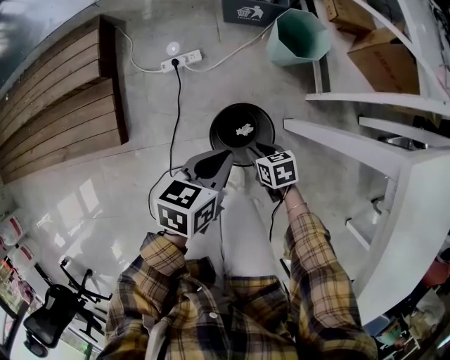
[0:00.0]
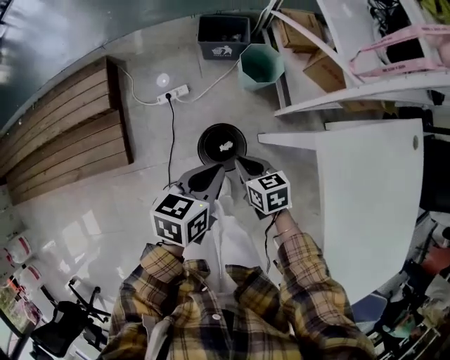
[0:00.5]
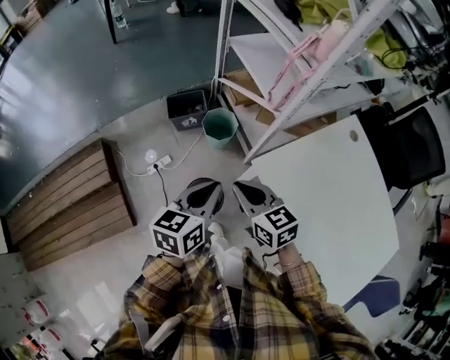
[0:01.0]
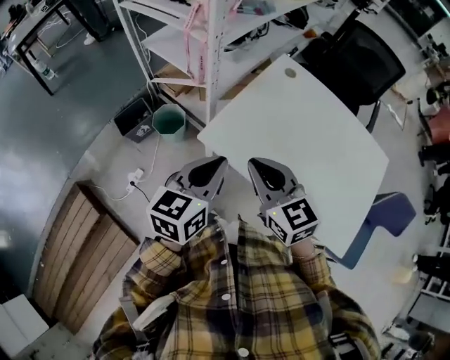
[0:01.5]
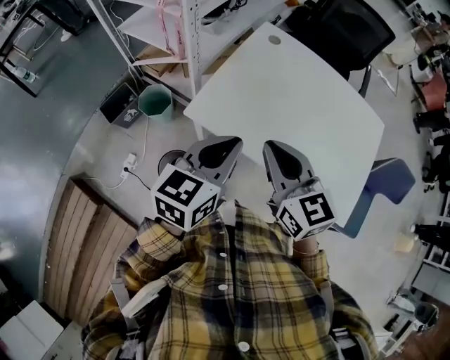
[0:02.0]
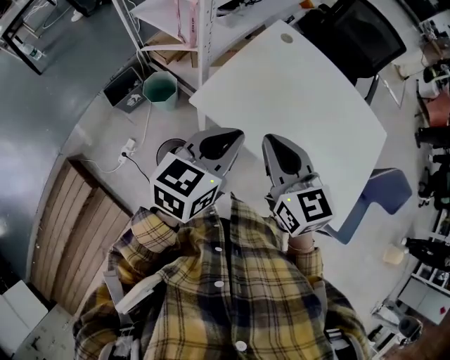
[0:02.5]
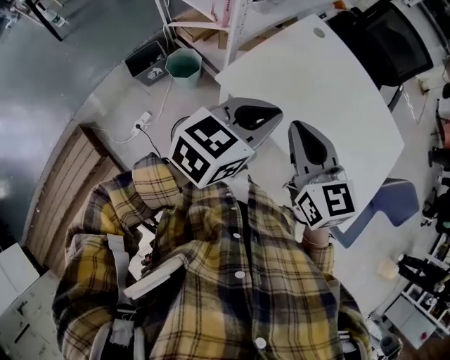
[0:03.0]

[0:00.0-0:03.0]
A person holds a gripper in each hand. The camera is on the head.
0.0 to 1.5 s: Both grippers travel together upward, about 60 cm. The left gripper turns by approximately 50 degrees; the right gripper points its fingers some 40 degrees further upward, and closes.
1.5 to 3.0 s: The grippers both shift to the right by about 5 cm.

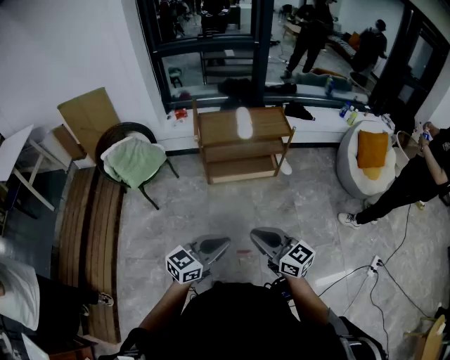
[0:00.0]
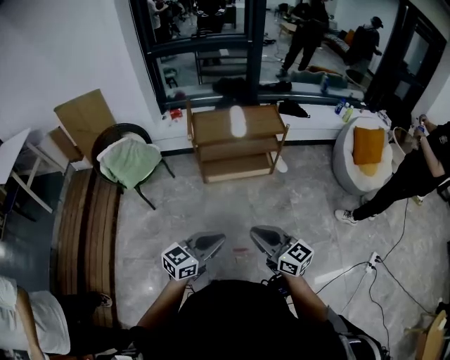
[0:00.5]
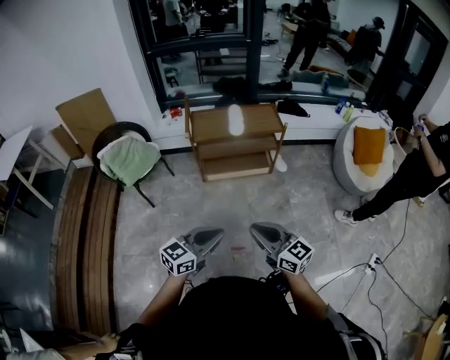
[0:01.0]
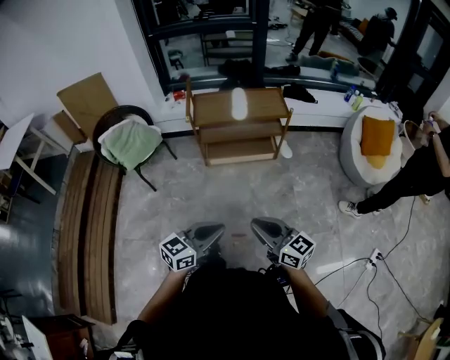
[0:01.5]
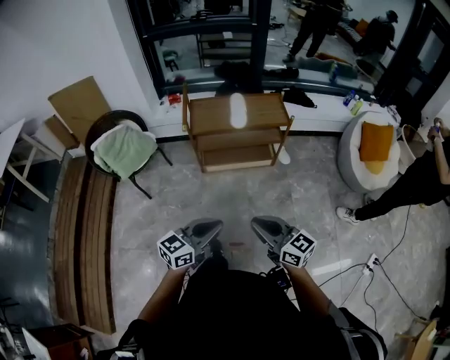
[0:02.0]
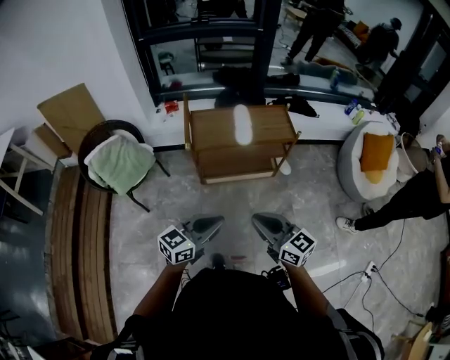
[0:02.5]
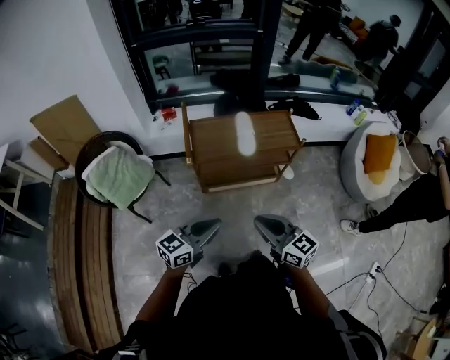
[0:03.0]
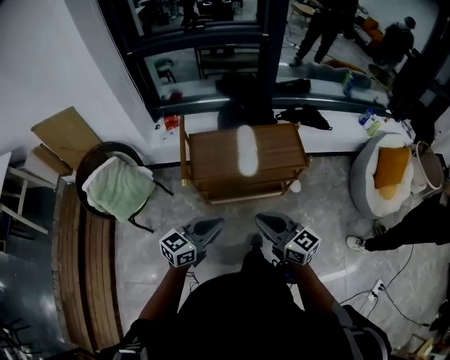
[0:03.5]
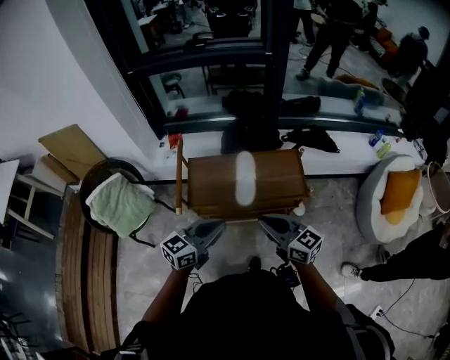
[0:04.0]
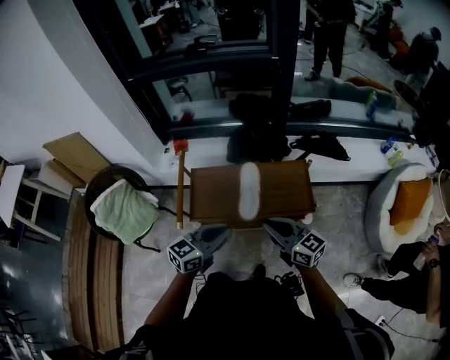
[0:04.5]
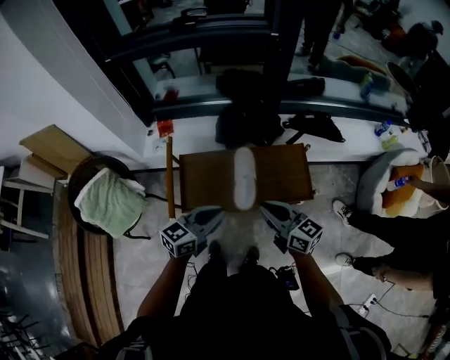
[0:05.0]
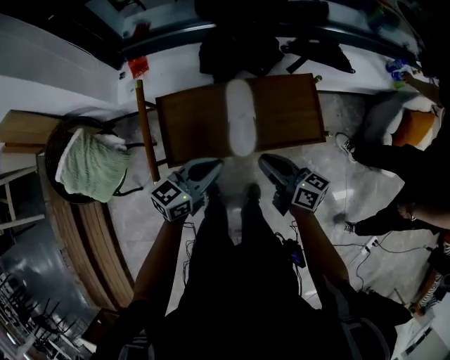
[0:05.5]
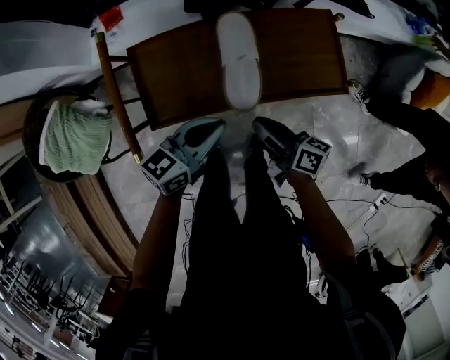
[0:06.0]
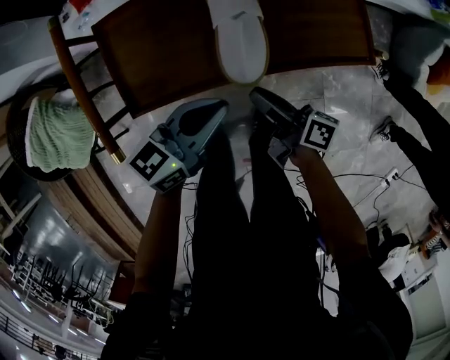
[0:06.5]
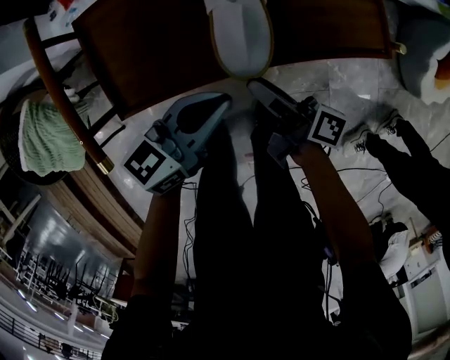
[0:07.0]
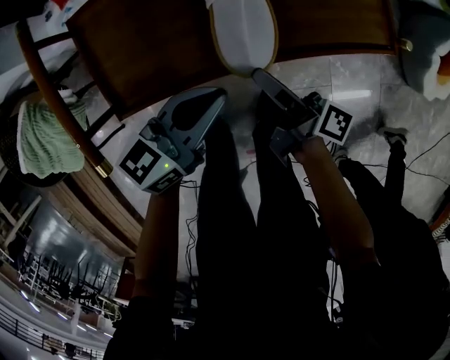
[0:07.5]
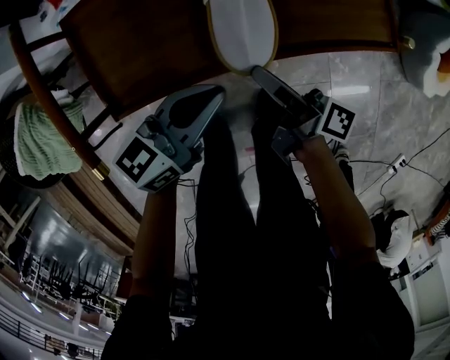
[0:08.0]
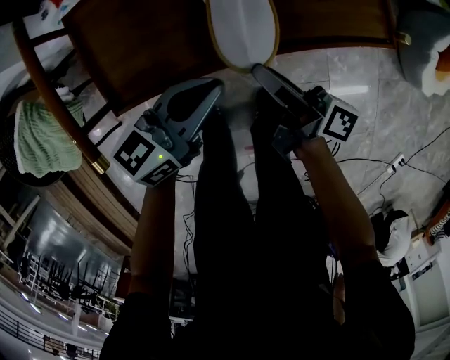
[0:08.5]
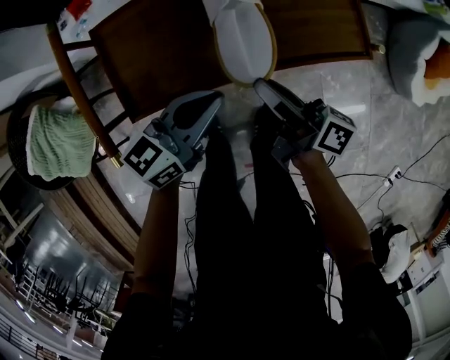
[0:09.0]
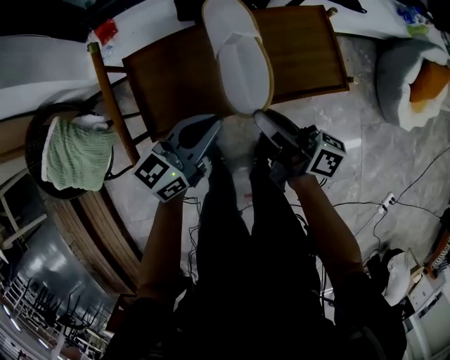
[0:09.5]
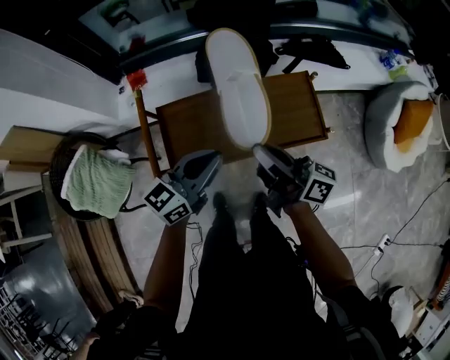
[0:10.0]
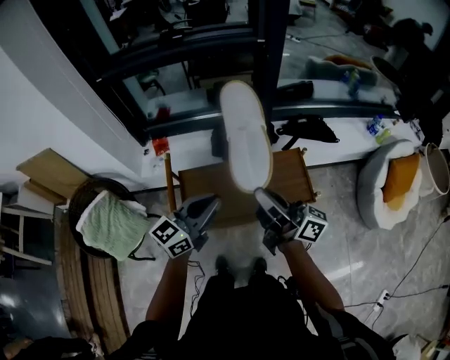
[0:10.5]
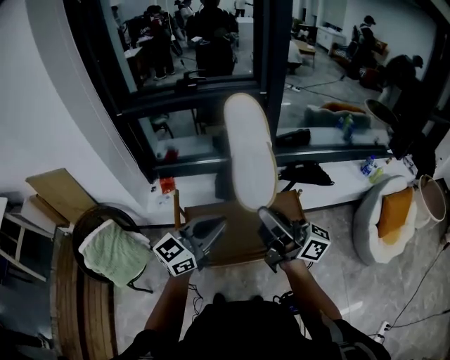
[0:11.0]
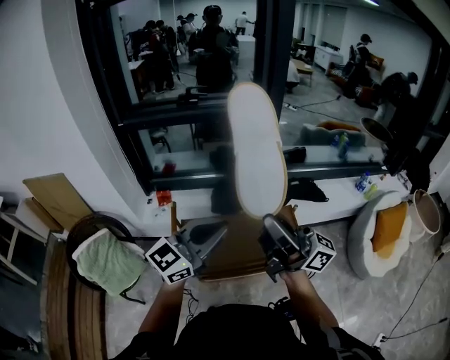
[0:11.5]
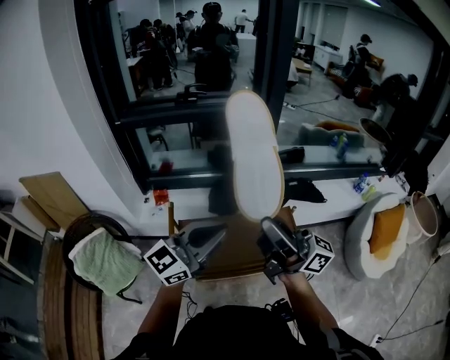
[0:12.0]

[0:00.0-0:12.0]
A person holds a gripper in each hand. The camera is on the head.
0.0 to 2.0 s: The left gripper travels forward by some 10 cm. Meanwhile the right gripper is displaced forward and to the right by roughly 10 cm.
2.0 to 4.0 s: The two grippers travel together, forward, approximately 50 cm.
4.0 to 6.0 s: The grippers both shift downward and forward by about 25 cm. The right gripper rolls clockwise, seen from behind, by approximately 50 degrees.
6.0 to 8.0 s: Both grippers move downward, about 10 cm. The right gripper changes its angle by some 30 degrees, and opens and closes again.
8.0 to 10.0 s: The grippers both shift upward by approximately 25 cm. The right gripper rotates roughly 30 degrees.
10.0 to 12.0 s: The grippers both shift upward by approximately 25 cm. The left gripper swivels about 30 degrees. The right gripper changes its angle by roughly 30 degrees.

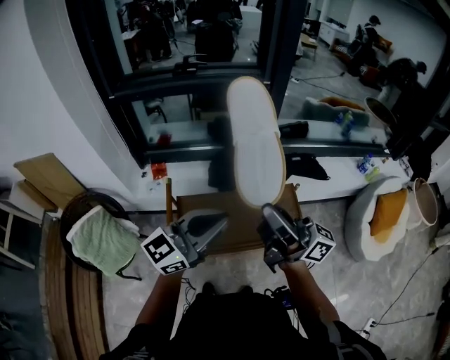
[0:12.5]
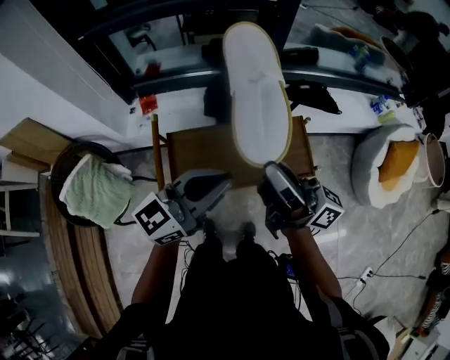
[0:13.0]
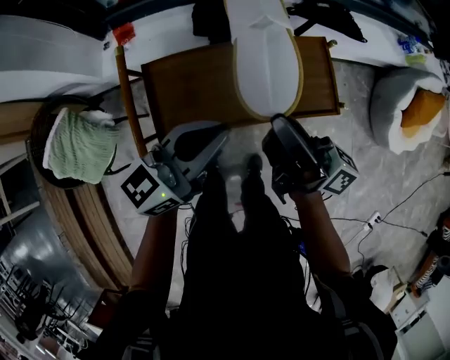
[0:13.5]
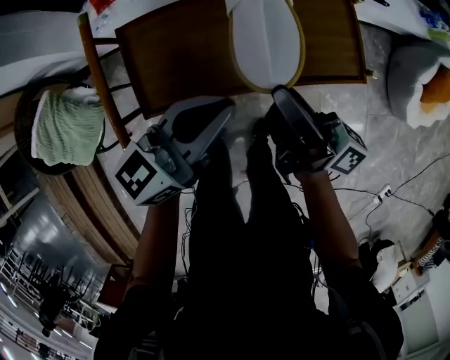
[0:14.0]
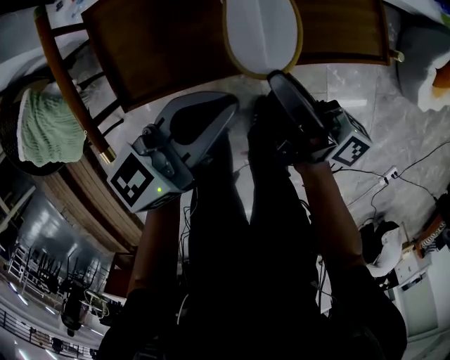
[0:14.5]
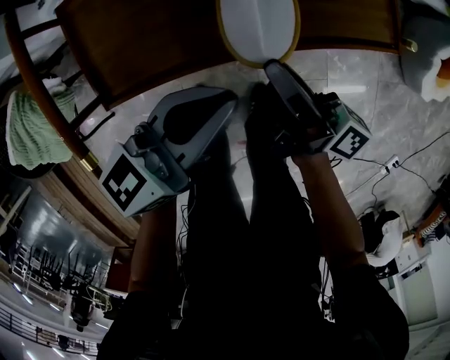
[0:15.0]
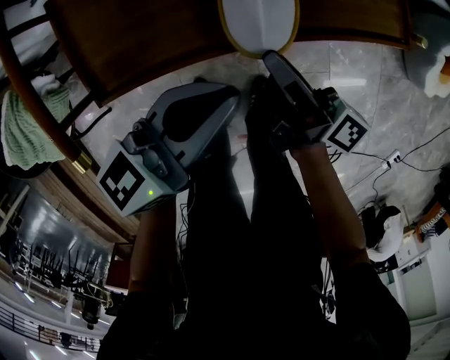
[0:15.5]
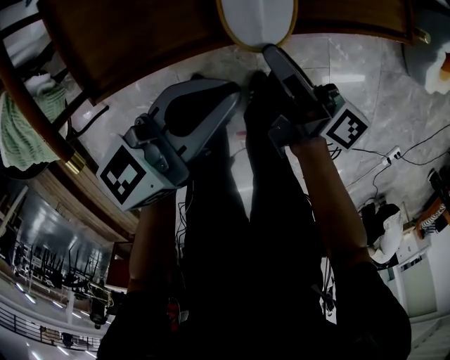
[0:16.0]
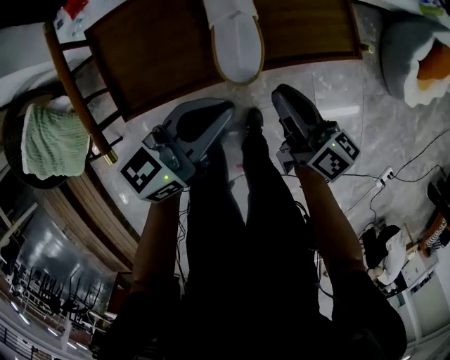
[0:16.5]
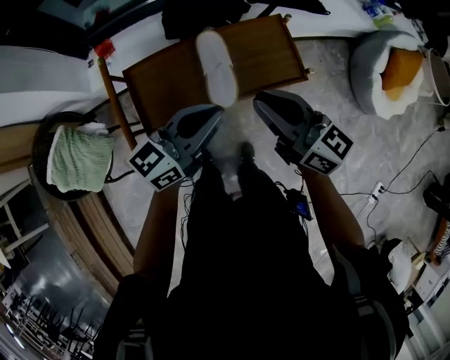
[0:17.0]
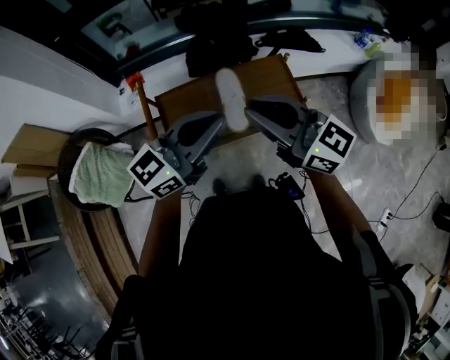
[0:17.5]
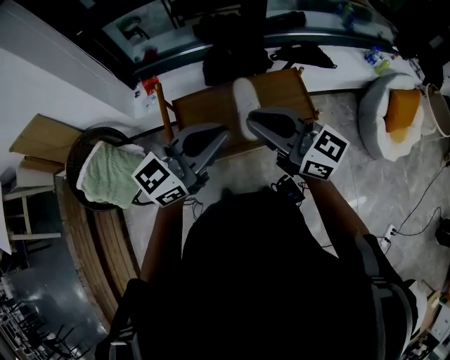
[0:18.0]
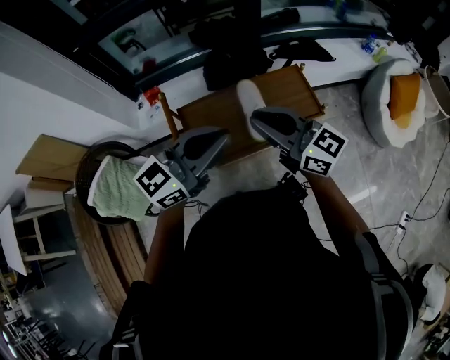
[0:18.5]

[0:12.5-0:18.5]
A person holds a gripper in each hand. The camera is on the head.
12.5 to 14.5 s: Both grippers travel together downward, roughly 35 cm. The left gripper rotates about 30 degrees, while the right gripper changes its angle by about 40 degrees.
14.5 to 16.5 s: The right gripper is displaced to the right by some 5 cm, goes downward and returns, approximately 10 cm each way, and changes its angle by some 30 degrees.
16.5 to 18.5 s: The grippers both shift upward by roughly 30 cm. The right gripper swivels approximately 50 degrees. The left gripper changes its angle by approximately 30 degrees.

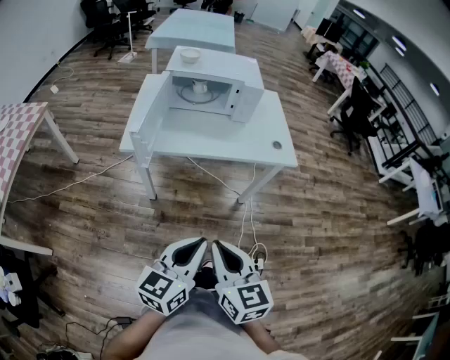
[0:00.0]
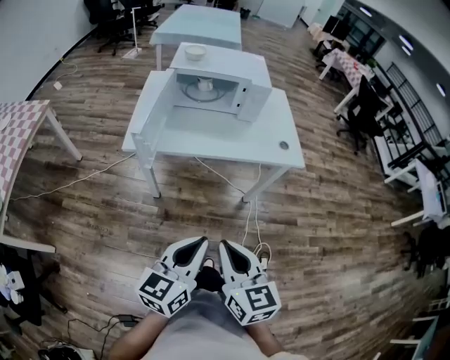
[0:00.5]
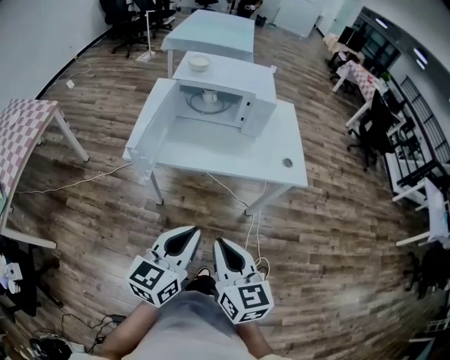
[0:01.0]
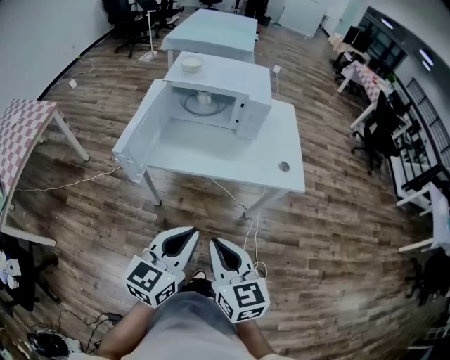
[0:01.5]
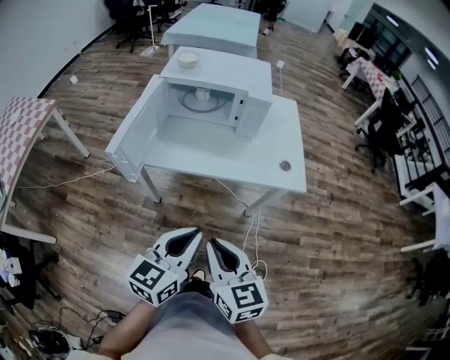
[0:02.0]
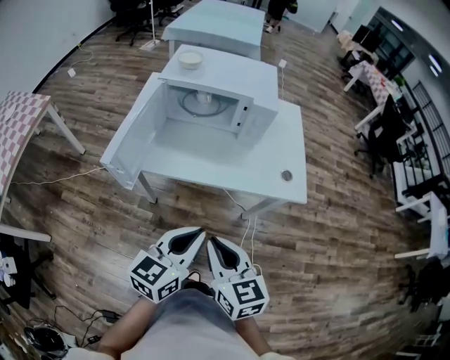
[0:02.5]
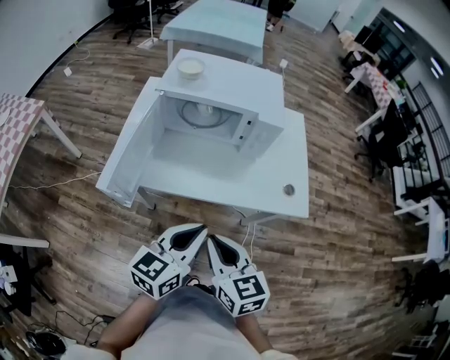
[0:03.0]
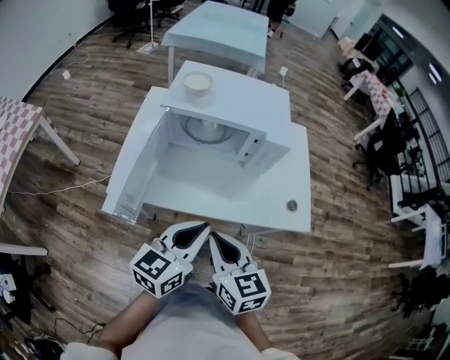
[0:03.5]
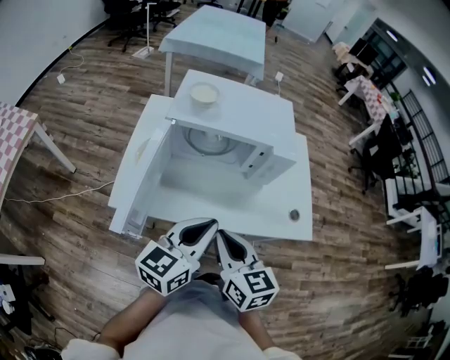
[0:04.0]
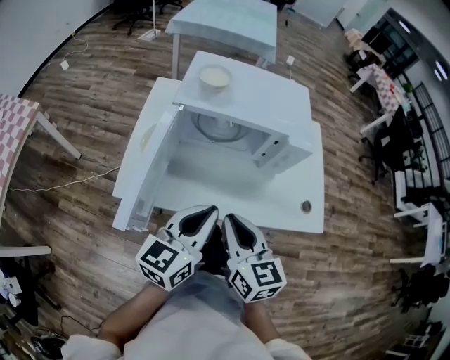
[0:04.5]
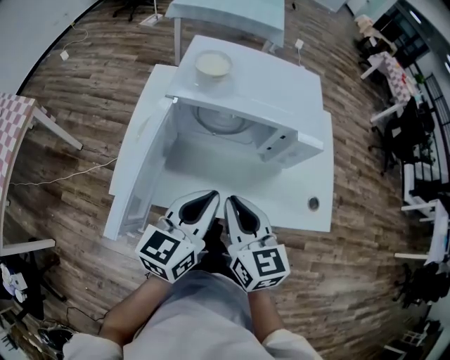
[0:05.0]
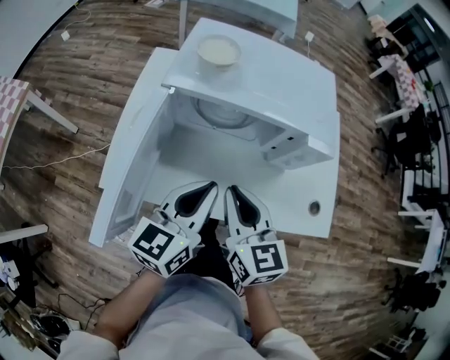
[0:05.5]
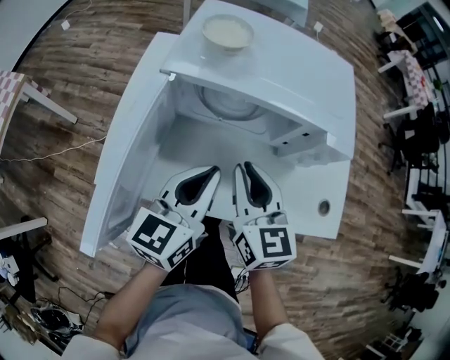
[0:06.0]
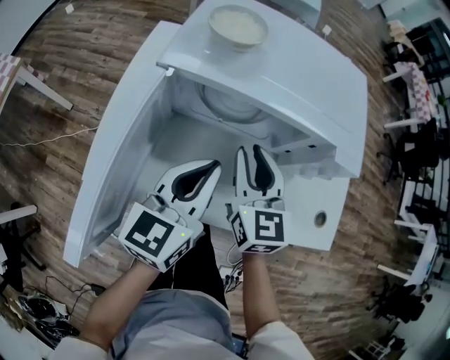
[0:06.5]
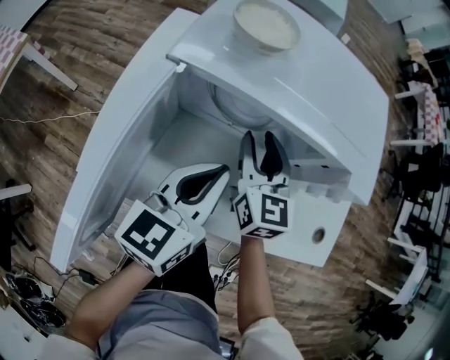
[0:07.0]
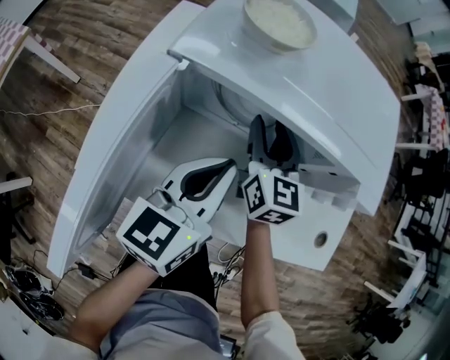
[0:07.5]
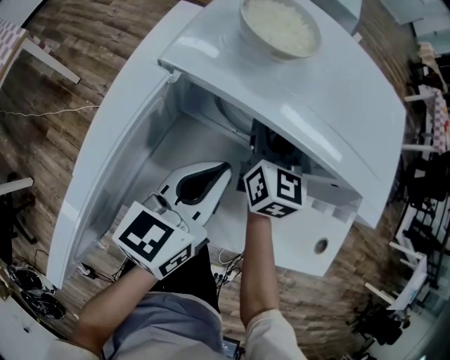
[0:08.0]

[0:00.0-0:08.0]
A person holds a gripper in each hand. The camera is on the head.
0.0 to 2.0 s: The grippers both shift forward and to the right by approximately 15 cm.
2.0 to 4.0 s: Both grippers travel together forward, some 25 cm.
4.0 to 6.0 s: The left gripper shifts about 15 cm forward and downward; the right gripper is displaced forward by roughly 20 cm.
6.0 to 8.0 s: The right gripper goes some 20 cm forward and downward, and opens up, while the left gripper travels forward and downward by approximately 10 cm.
